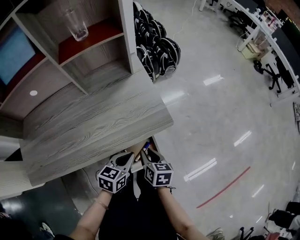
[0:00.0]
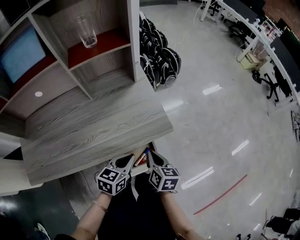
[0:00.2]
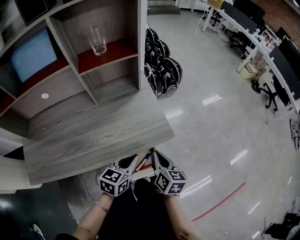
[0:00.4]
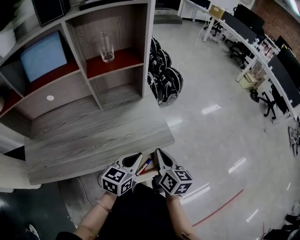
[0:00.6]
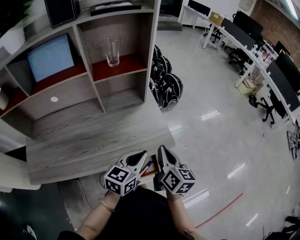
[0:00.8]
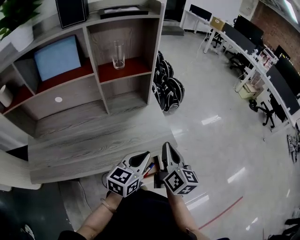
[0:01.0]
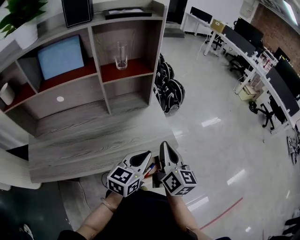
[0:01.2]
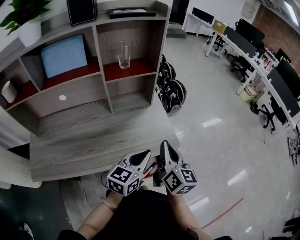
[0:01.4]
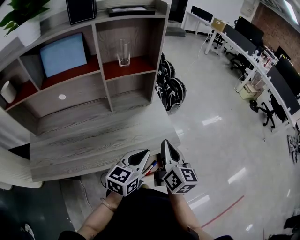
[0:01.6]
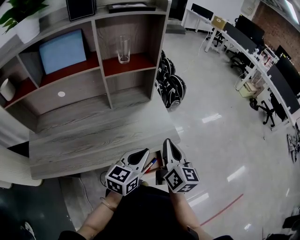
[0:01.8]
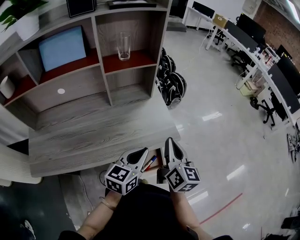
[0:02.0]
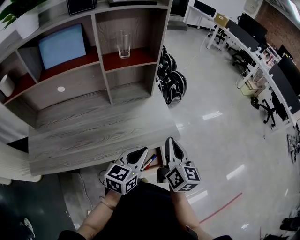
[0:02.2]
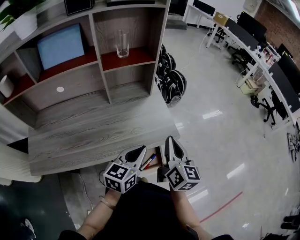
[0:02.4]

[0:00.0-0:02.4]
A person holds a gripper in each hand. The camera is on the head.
0:00.0 to 0:01.2: Both grippers travel together upward, roughly 20 cm. The left gripper turns by about 20 degrees; the right gripper tips its fingers upward by approximately 40 degrees, and closes.
0:01.2 to 0:02.4: The grippers stay close to where they were, moving slightly.

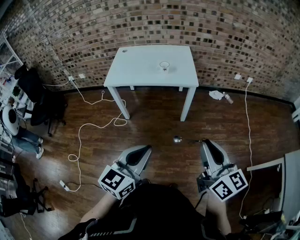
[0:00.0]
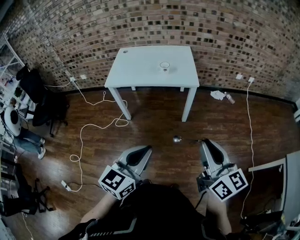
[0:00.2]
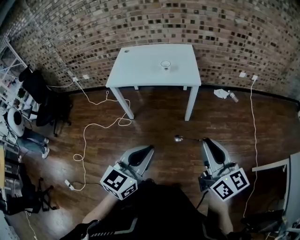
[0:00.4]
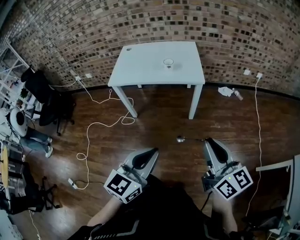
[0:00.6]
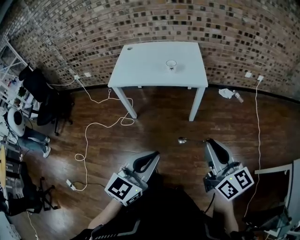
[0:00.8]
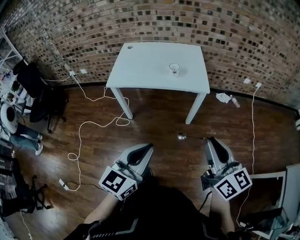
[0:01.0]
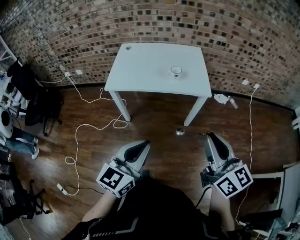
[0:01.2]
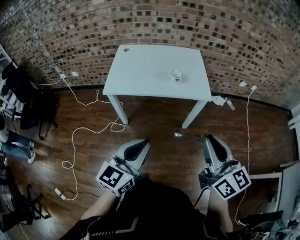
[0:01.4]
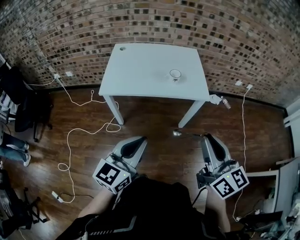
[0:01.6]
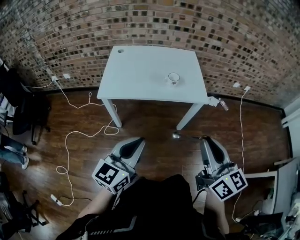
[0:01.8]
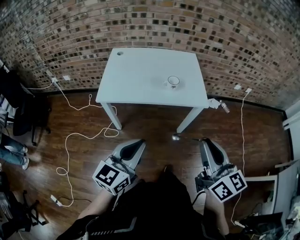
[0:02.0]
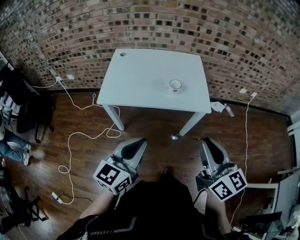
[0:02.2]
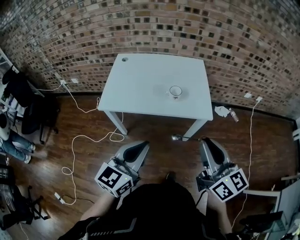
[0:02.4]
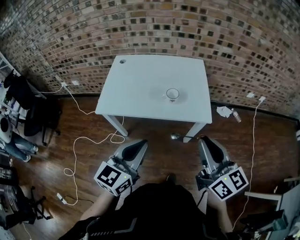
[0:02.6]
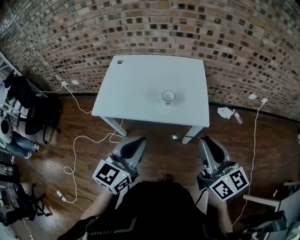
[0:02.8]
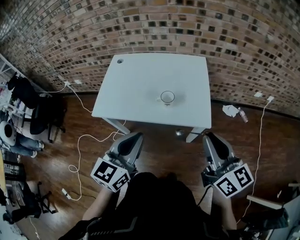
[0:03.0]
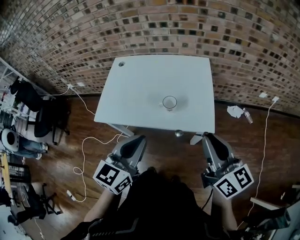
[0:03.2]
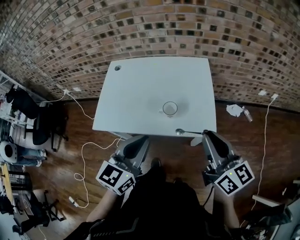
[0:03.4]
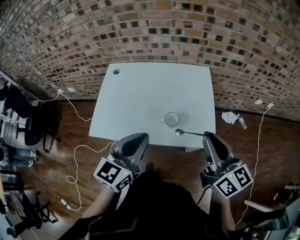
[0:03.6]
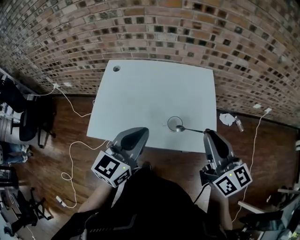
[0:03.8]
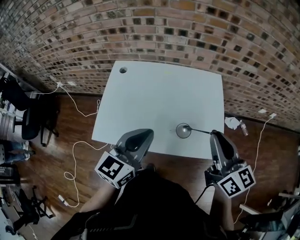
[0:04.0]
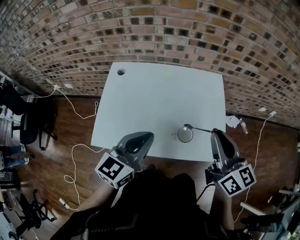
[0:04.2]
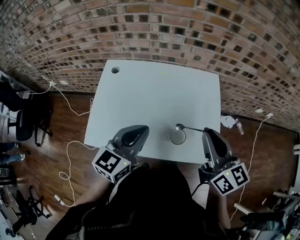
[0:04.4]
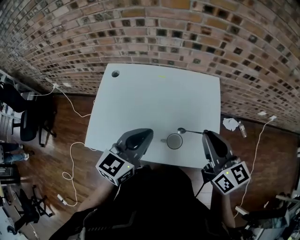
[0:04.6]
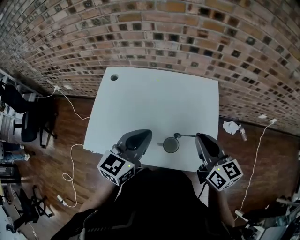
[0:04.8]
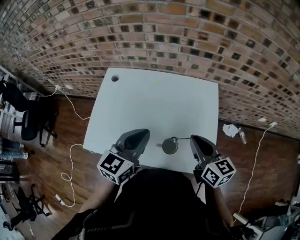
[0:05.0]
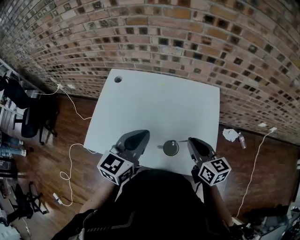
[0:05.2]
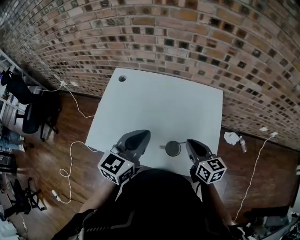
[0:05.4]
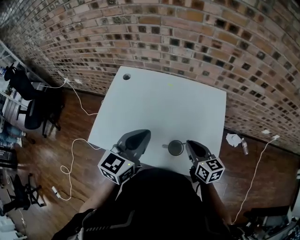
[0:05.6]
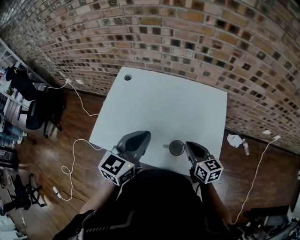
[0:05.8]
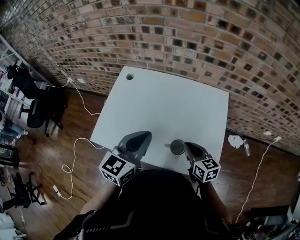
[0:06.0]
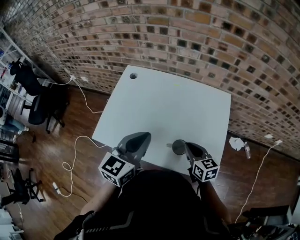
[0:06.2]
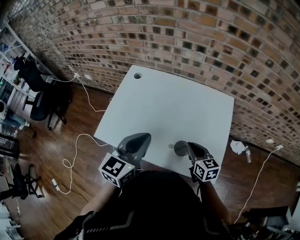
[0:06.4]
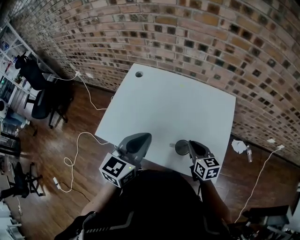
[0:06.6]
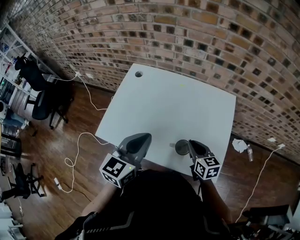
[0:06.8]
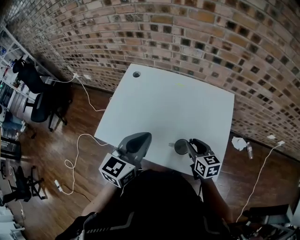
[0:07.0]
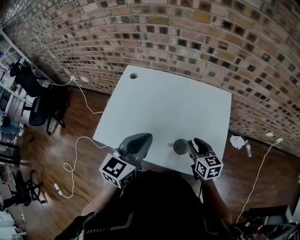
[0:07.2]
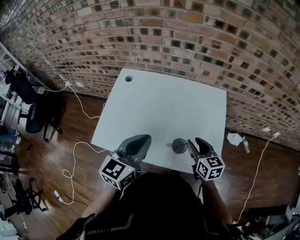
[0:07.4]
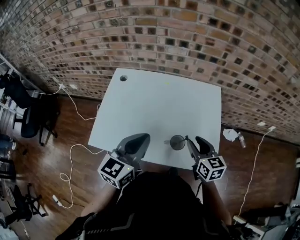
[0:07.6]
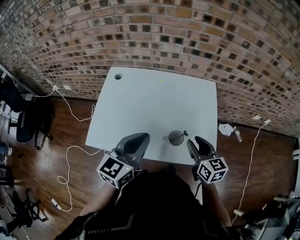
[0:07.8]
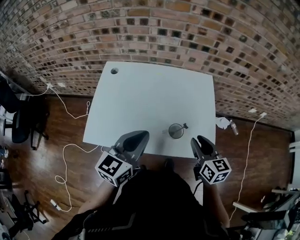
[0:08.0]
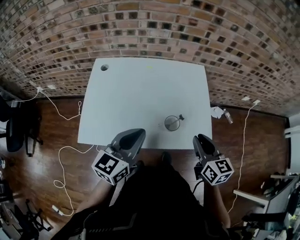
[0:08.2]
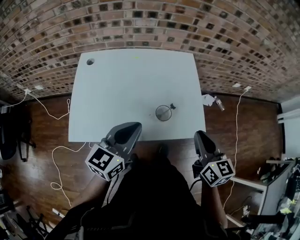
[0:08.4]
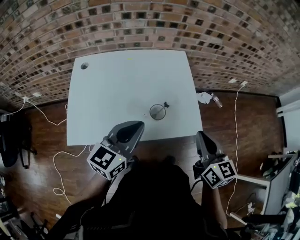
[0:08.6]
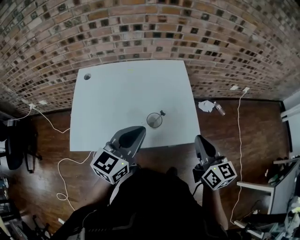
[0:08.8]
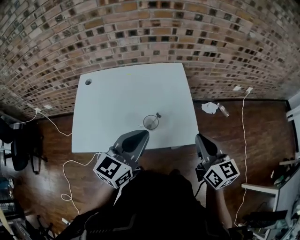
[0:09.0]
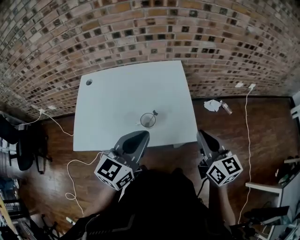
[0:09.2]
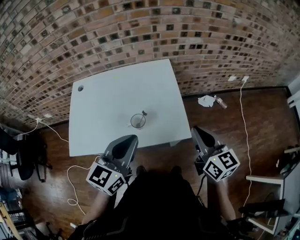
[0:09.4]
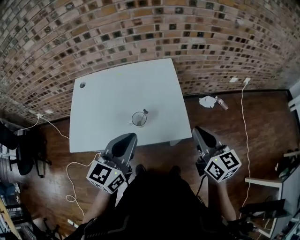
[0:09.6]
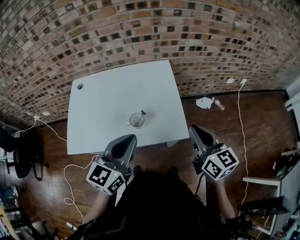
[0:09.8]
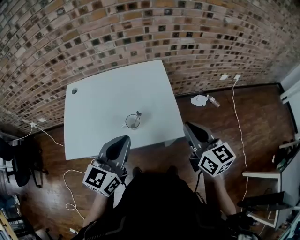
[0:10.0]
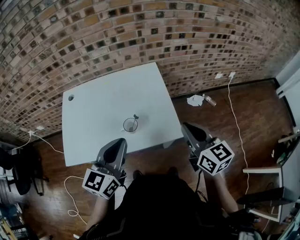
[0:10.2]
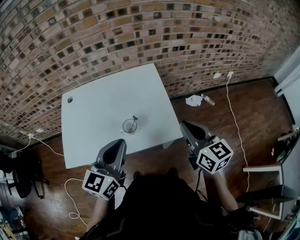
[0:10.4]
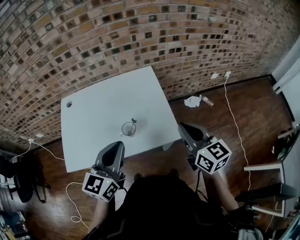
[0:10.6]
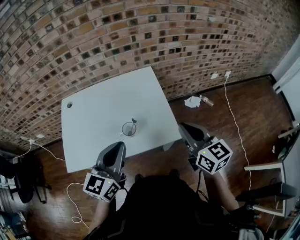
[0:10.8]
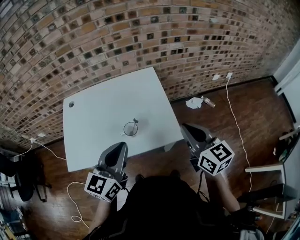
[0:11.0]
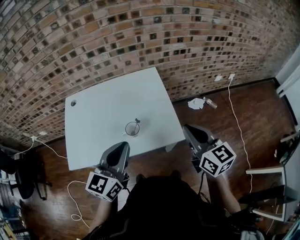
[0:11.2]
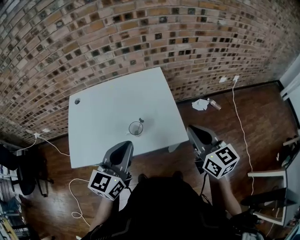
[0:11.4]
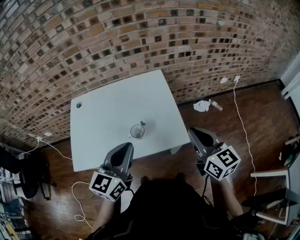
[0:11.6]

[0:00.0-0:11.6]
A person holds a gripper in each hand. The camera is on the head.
0:00.0 to 0:01.4: Both grippers travel together forward and to the left, approximately 20 cm.
0:01.4 to 0:02.8: Both grippers move forward, some 20 cm.
0:02.8 to 0:04.4: The two grippers go about 30 cm forward.
0:04.4 to 0:05.8: The right gripper shifts about 20 cm downward, and changes its angle by about 20 degrees.
0:05.8 to 0:07.2: The right gripper opens up.
0:07.2 to 0:08.8: The right gripper shifts by some 25 cm, changes its angle by about 30 degrees, and closes its fingers; the left gripper changes place by some 10 cm, and changes its angle by some 30 degrees.
0:08.8 to 0:10.2: Both grippers travel together to the right, about 5 cm.
0:10.2 to 0:11.6: The grippers stay close to where they were, moving slightly.

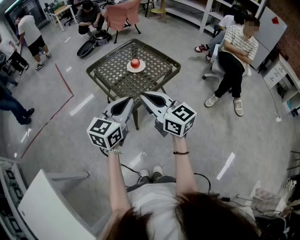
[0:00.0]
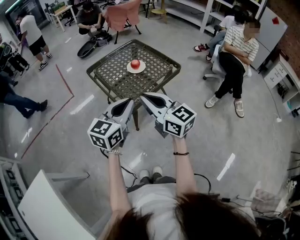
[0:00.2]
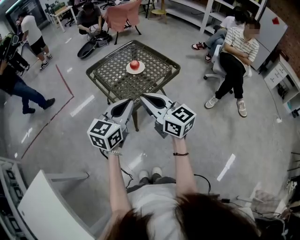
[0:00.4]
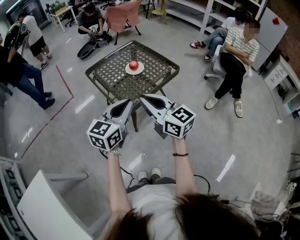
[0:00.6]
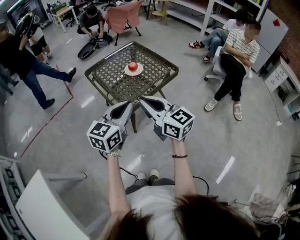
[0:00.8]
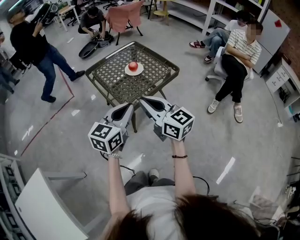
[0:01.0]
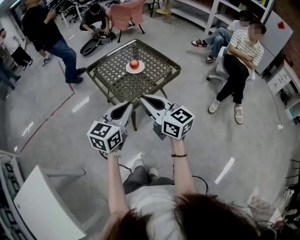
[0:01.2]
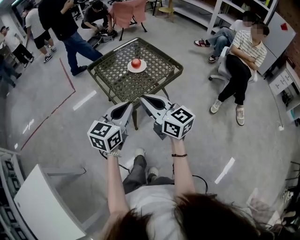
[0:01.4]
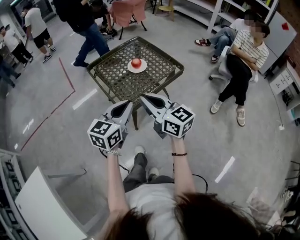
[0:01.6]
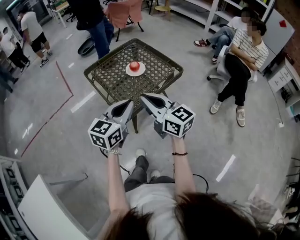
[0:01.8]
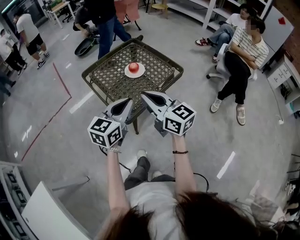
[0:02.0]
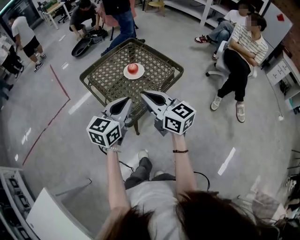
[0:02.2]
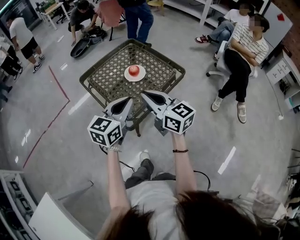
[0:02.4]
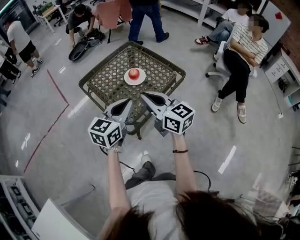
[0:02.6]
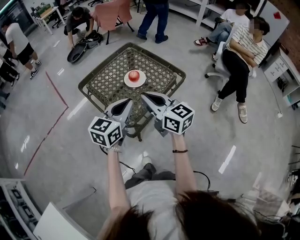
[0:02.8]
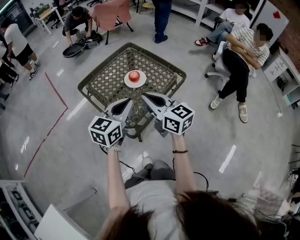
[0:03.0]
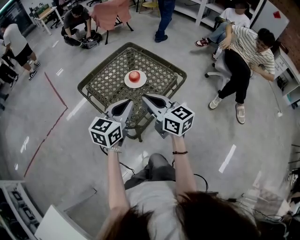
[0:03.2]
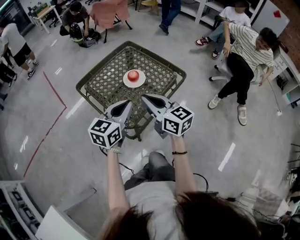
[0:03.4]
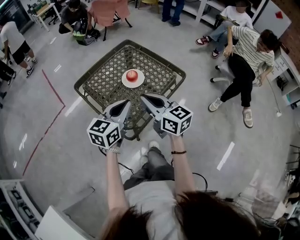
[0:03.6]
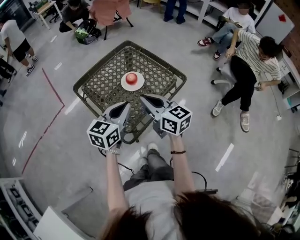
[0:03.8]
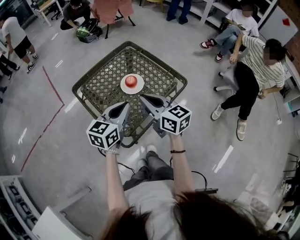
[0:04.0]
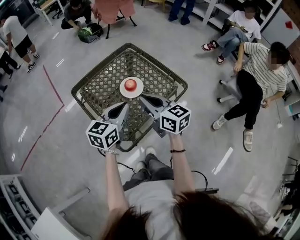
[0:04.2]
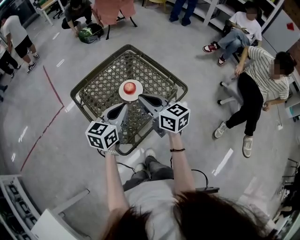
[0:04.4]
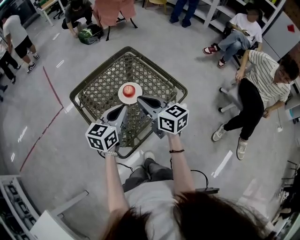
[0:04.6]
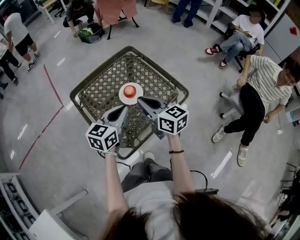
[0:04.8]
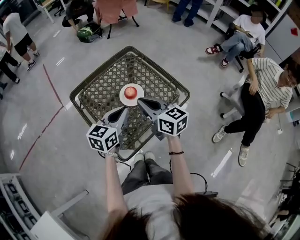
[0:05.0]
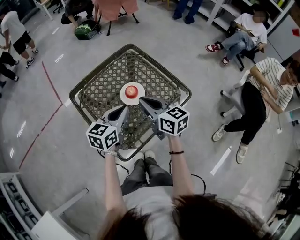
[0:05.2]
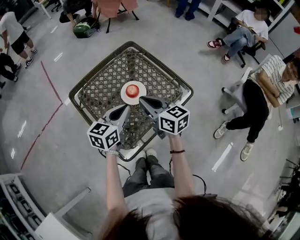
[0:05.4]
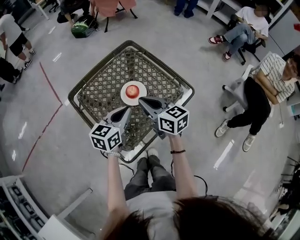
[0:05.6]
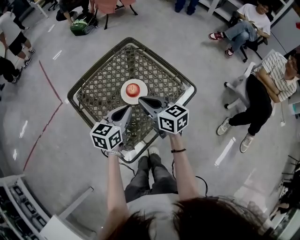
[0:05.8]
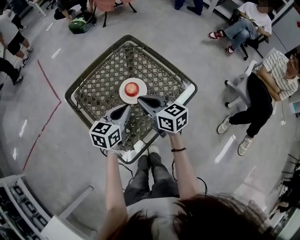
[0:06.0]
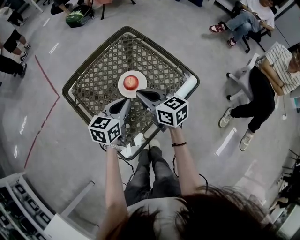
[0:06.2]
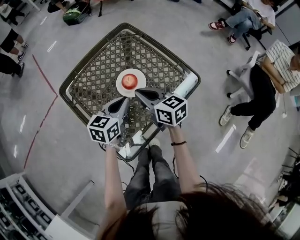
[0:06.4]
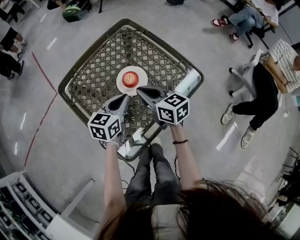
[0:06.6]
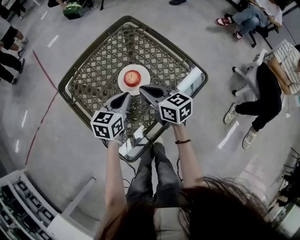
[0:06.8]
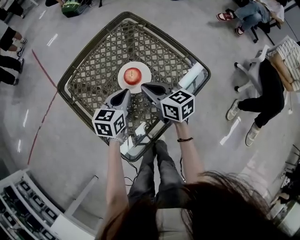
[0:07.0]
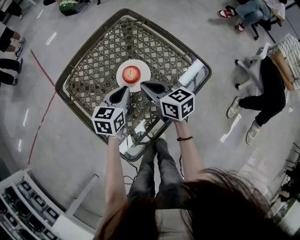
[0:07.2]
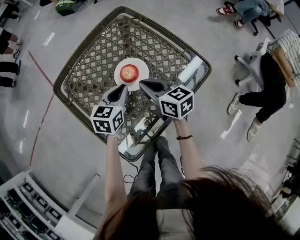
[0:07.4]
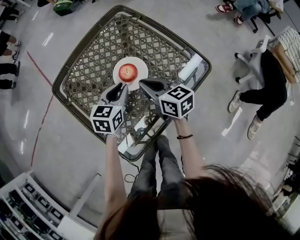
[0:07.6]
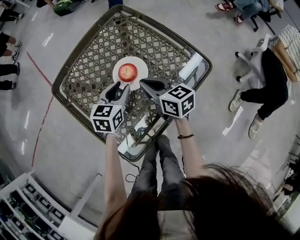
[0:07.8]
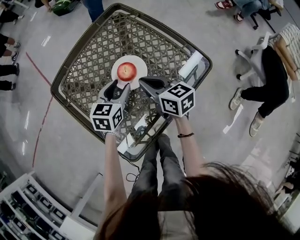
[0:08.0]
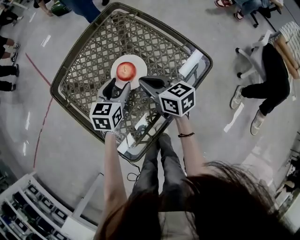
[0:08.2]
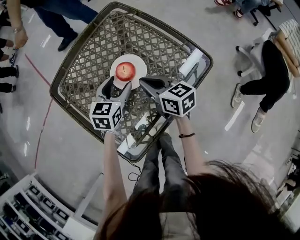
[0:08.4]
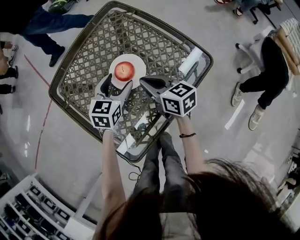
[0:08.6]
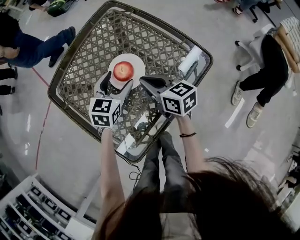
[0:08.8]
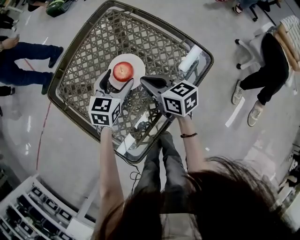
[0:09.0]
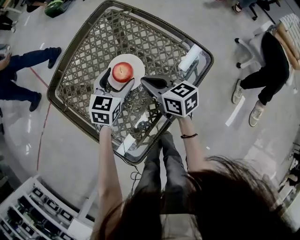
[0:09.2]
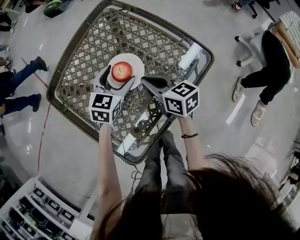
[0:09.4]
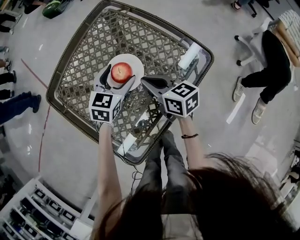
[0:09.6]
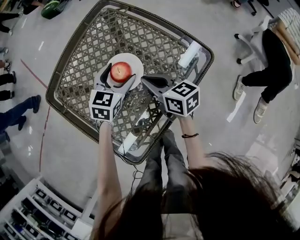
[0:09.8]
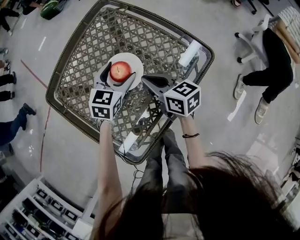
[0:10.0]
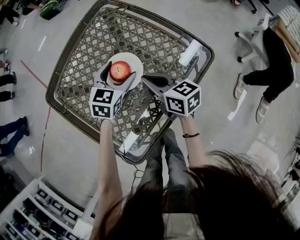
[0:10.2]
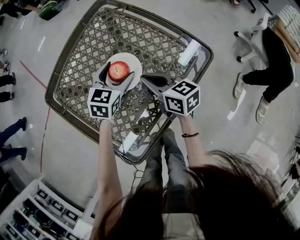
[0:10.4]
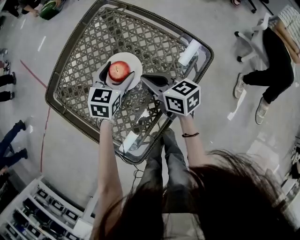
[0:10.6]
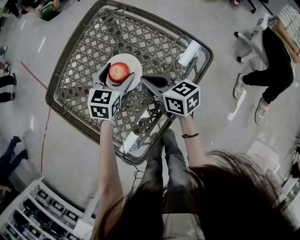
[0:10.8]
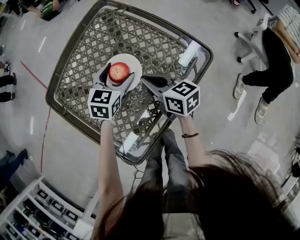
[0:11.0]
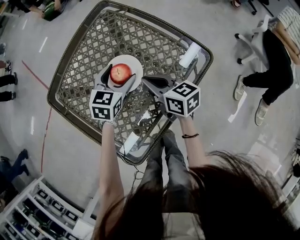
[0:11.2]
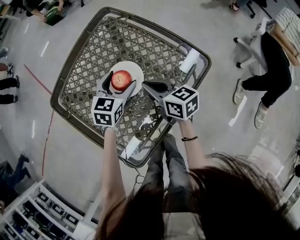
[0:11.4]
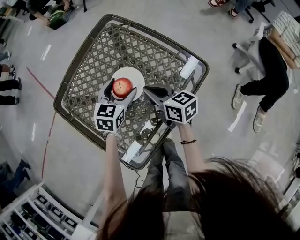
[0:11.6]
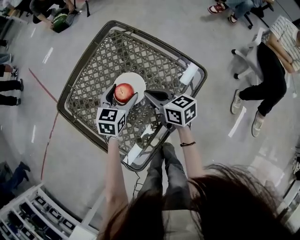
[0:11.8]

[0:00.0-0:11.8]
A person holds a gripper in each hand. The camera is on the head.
0:00.0 to 0:01.4: There are only small adjustments of the grippers.
0:01.4 to 0:03.0: Both grippers travel together forward, about 20 cm.
0:03.0 to 0:04.4: The two grippers go approximately 15 cm forward.
0:04.4 to 0:06.0: The grippers both shift downward and forward by about 10 cm.
0:06.0 to 0:07.4: The left gripper moves downward and forward, some 15 cm. Meanwhile the right gripper is displaced downward by some 10 cm.
0:07.4 to 0:08.8: The left gripper opens.
0:08.8 to 0:10.4: The grippers stay close to where they were, moving slightly.
0:10.4 to 0:11.8: The left gripper heads upward, covering approximately 5 cm.
